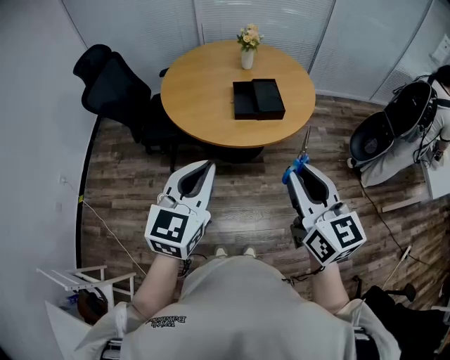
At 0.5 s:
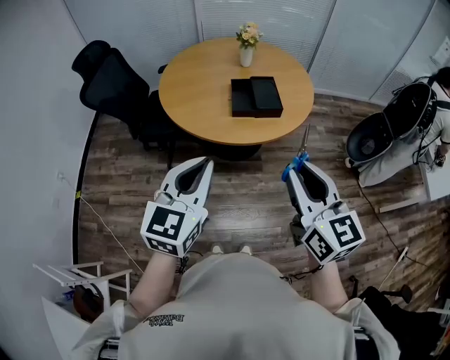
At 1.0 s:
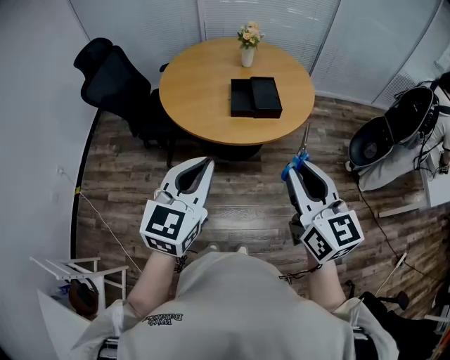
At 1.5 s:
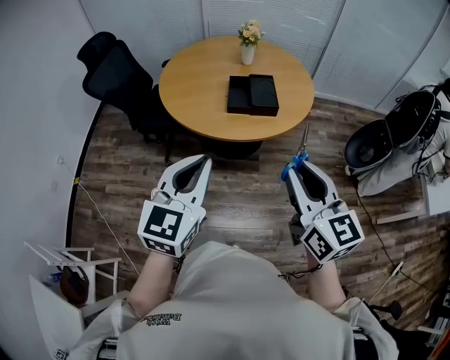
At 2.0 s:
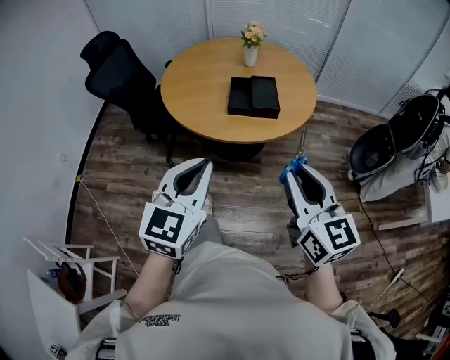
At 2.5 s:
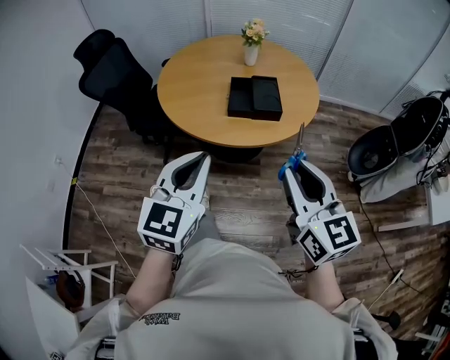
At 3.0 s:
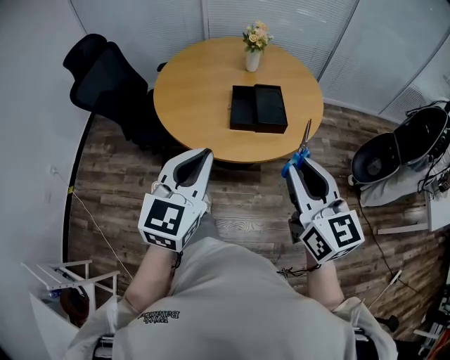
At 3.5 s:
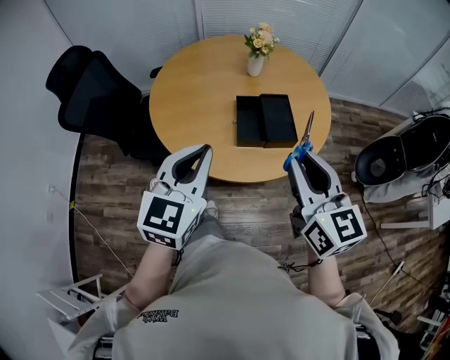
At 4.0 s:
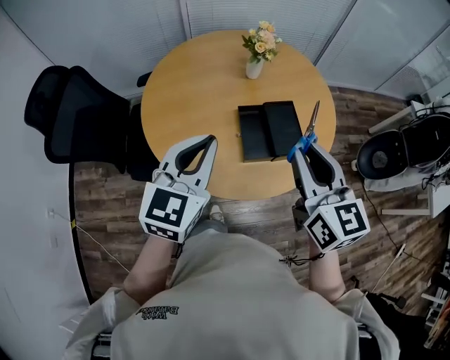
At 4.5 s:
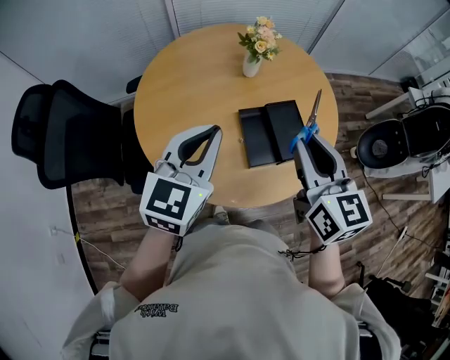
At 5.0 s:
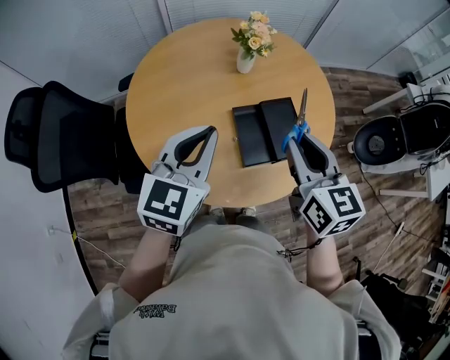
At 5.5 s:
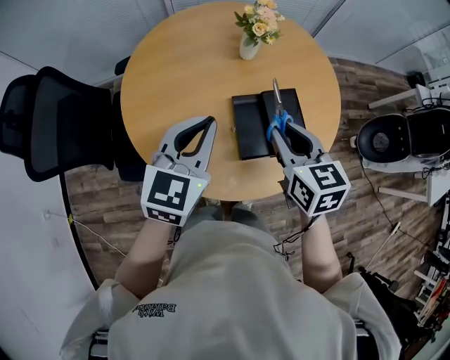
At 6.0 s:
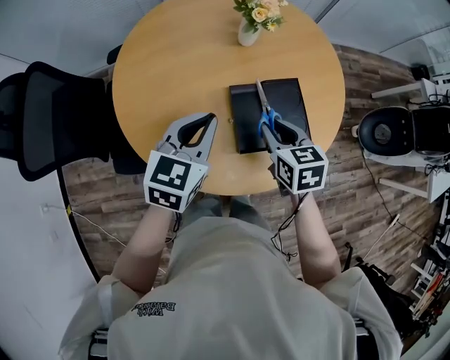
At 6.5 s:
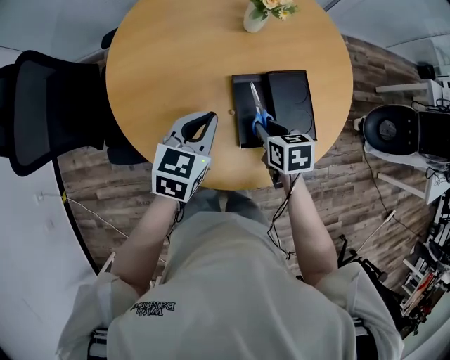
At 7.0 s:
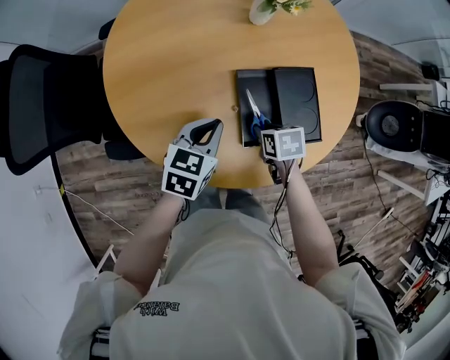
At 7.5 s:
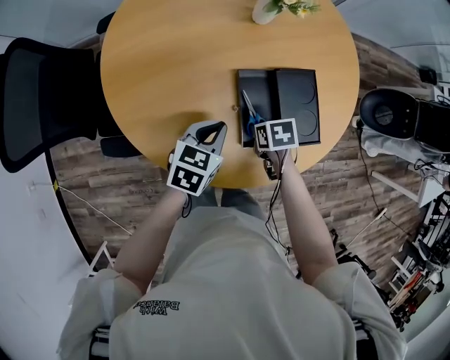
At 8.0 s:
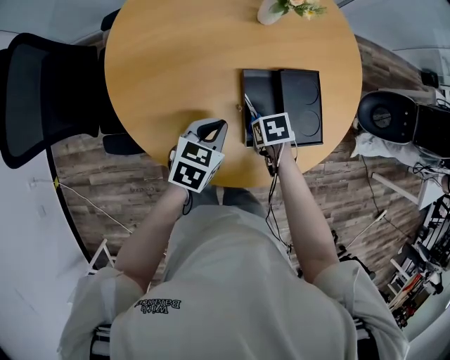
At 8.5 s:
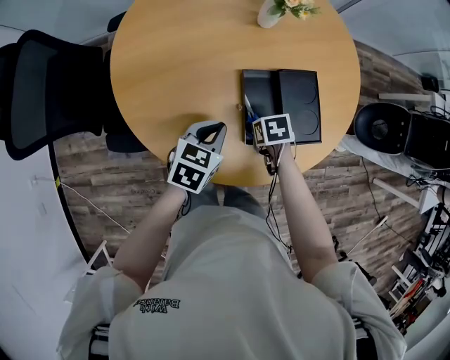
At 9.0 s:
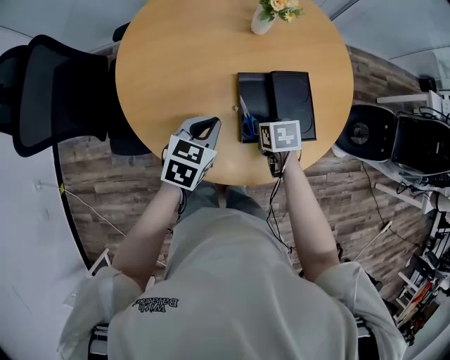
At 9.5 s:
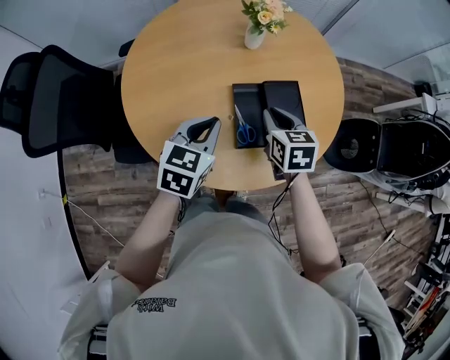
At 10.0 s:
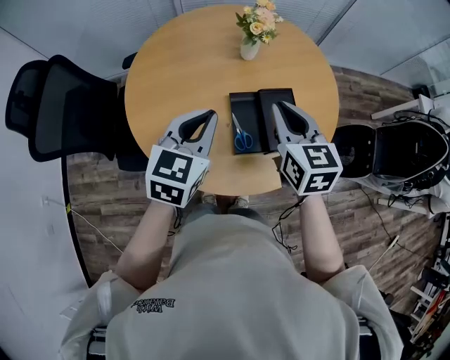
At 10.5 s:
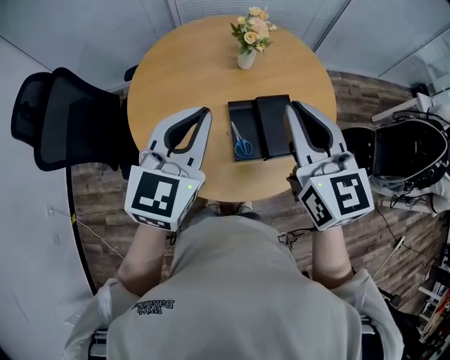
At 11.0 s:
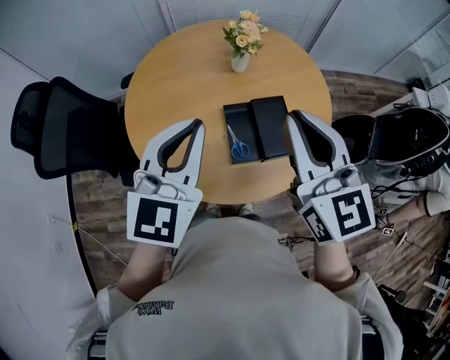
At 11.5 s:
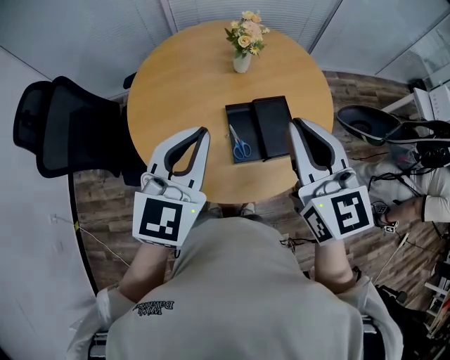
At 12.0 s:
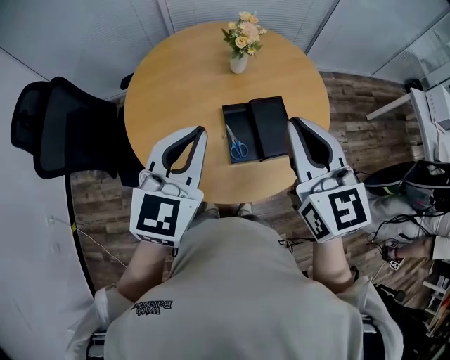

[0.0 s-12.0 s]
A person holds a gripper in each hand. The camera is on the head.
0.0 to 2.0 s: The two grippers go roughly 10 cm to the right.
2.0 to 4.0 s: Both grippers are carried forward, about 40 cm.
4.0 to 6.0 s: Both grippers move downward and forward, about 25 cm. The right gripper tips its fingers downward by roughly 30 degrees.
6.0 to 8.0 s: The grippers both shift downward by some 20 cm. The left gripper changes its angle by approximately 20 degrees. The right gripper tilts its fingers some 40 degrees downward.
8.0 to 10.0 s: The right gripper travels upward by about 35 cm, and angles its fingers upward, by some 60 degrees, while the left gripper shifts about 20 cm upward, and swivels some 30 degrees.
10.0 to 12.0 s: The right gripper travels upward and backward by about 15 cm. The left gripper travels upward by about 10 cm.

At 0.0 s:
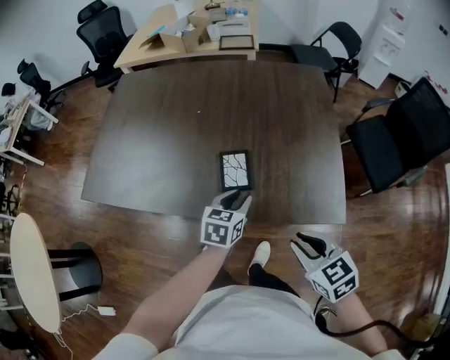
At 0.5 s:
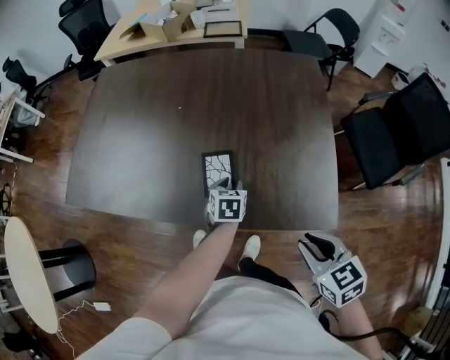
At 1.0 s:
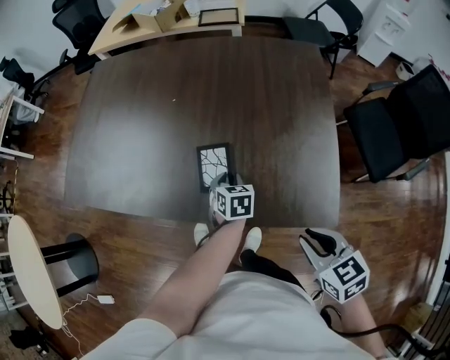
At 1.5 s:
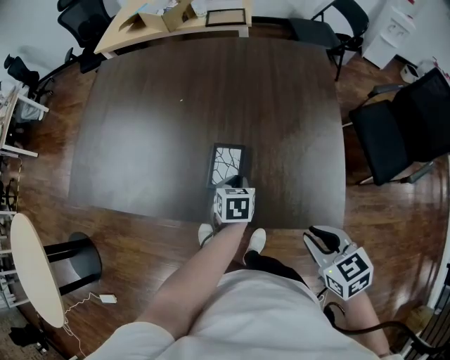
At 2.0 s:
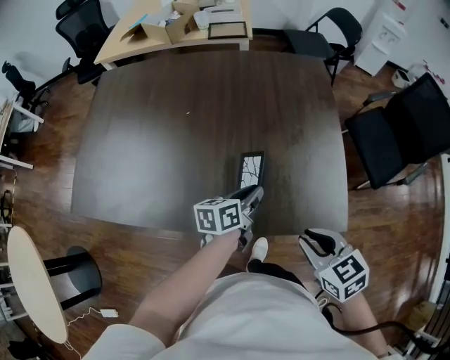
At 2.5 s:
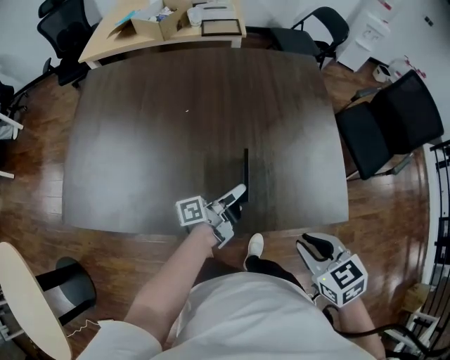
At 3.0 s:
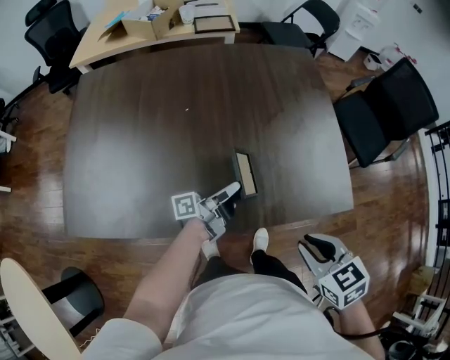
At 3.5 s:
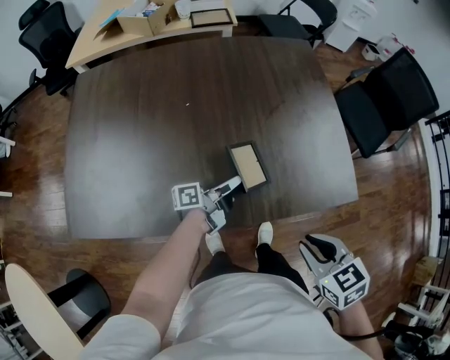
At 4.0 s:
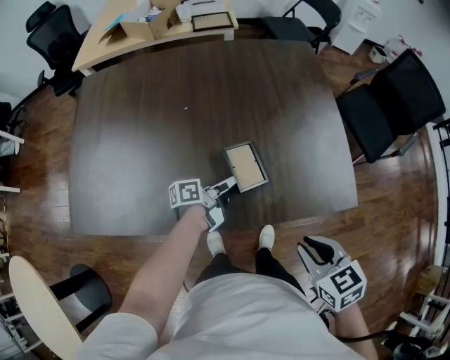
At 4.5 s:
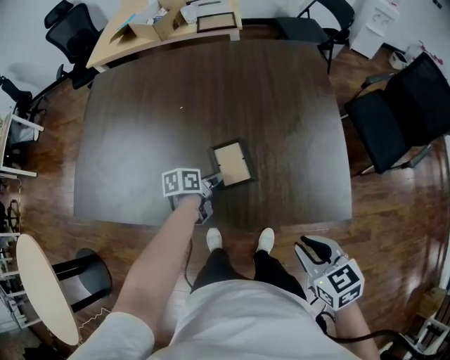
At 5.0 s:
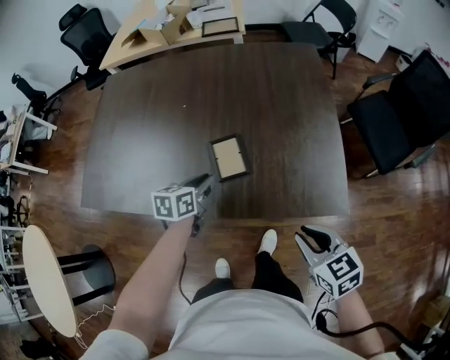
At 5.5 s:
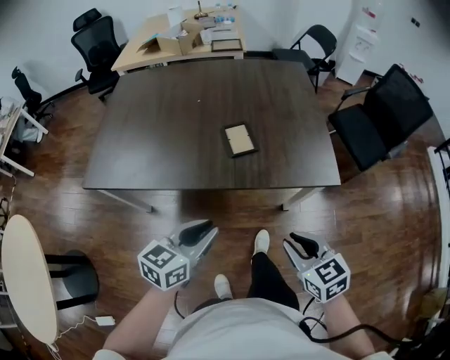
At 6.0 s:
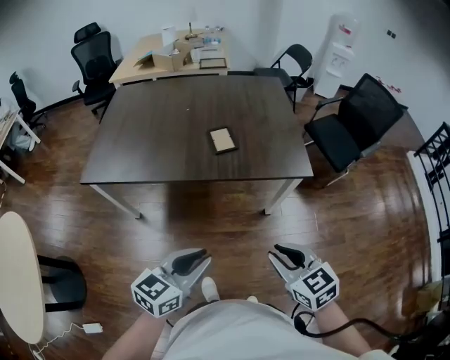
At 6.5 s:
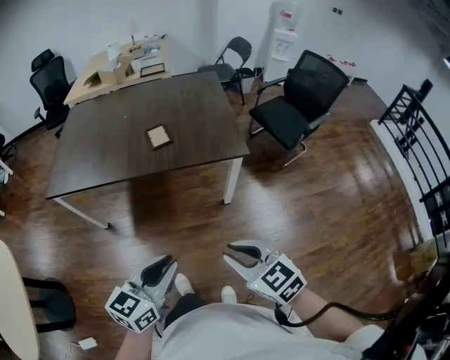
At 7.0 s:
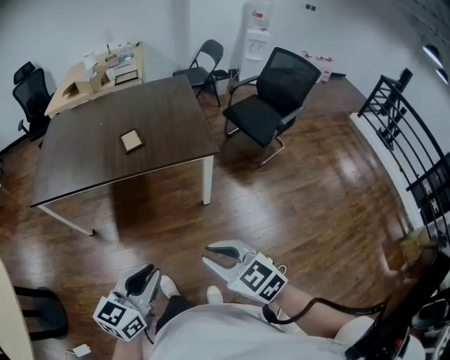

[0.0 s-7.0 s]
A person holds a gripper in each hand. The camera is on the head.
0.0 to 2.0 s: The right gripper moves some 5 cm, while the left gripper goes roughly 5 cm to the right, goes downward and returns, about 10 cm each way, and swivels approximately 30 degrees.
2.0 to 3.5 s: The left gripper is displaced to the left by about 10 cm, and changes its angle by some 40 degrees. Meanwhile the right gripper moves to the left and backward, some 10 cm.
3.5 to 5.0 s: The right gripper travels to the right by roughly 10 cm. The left gripper goes downward and returns, about 5 cm each way, and tips its fingers downward by about 40 degrees.
5.0 to 7.0 s: The grippers both shift backward by approximately 40 cm. The left gripper turns by approximately 30 degrees.

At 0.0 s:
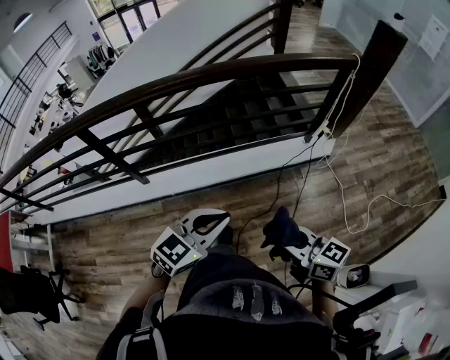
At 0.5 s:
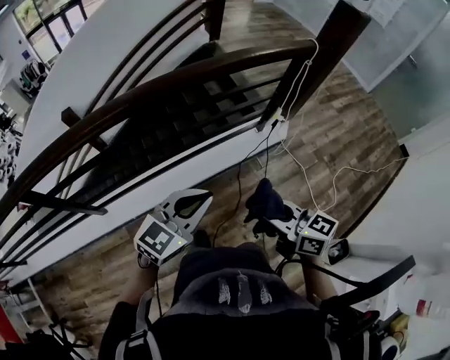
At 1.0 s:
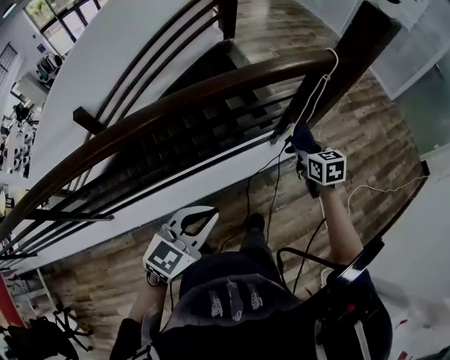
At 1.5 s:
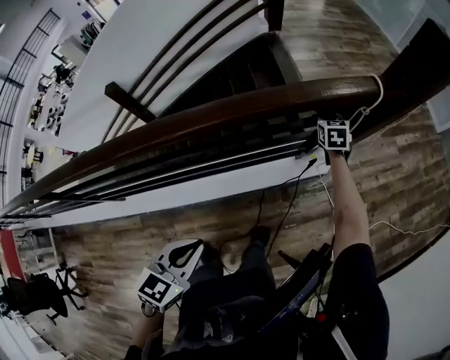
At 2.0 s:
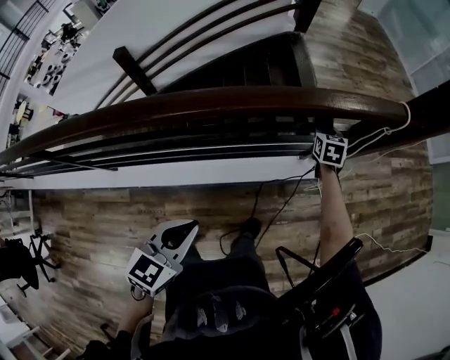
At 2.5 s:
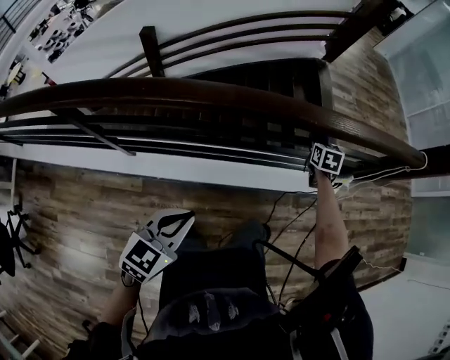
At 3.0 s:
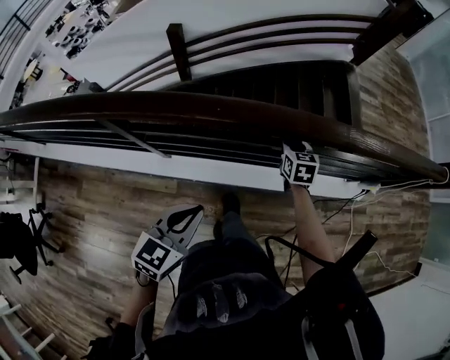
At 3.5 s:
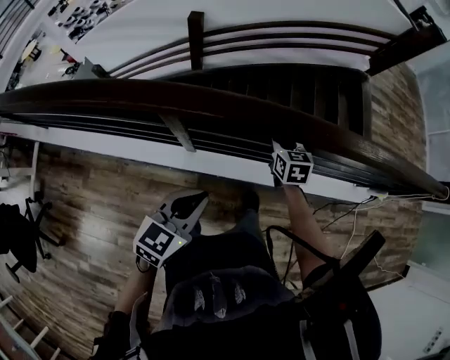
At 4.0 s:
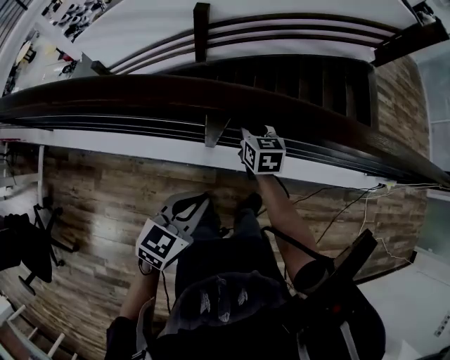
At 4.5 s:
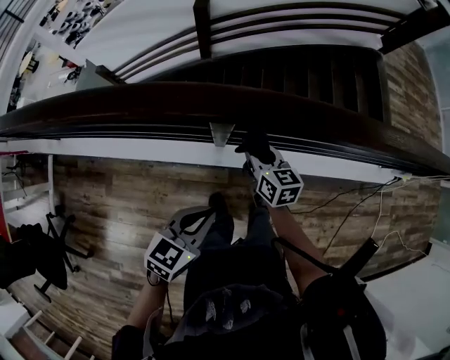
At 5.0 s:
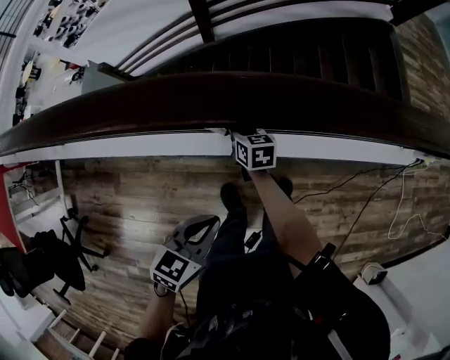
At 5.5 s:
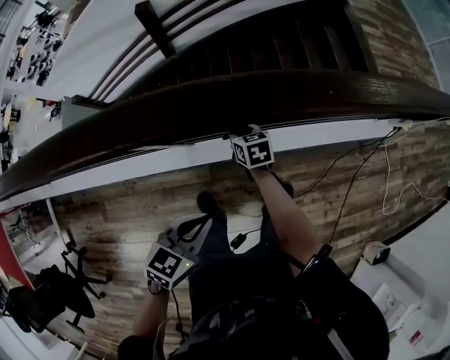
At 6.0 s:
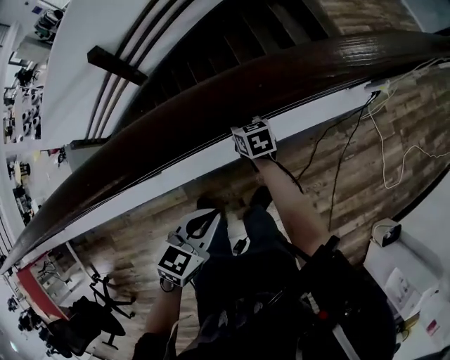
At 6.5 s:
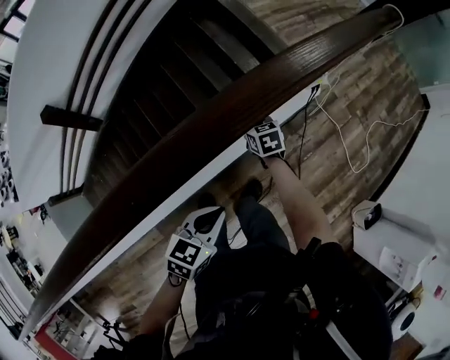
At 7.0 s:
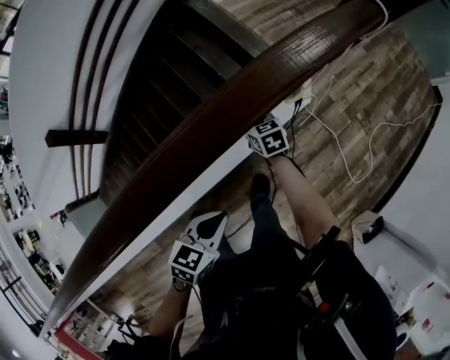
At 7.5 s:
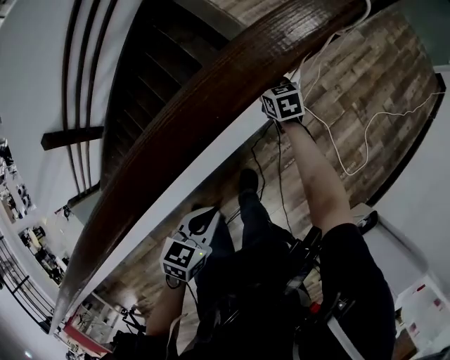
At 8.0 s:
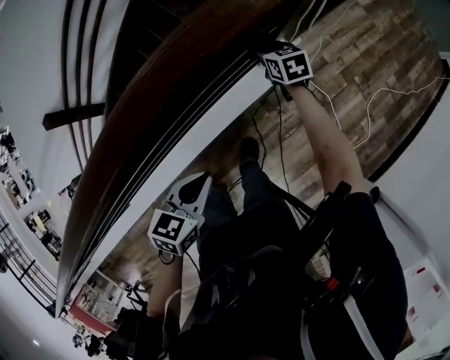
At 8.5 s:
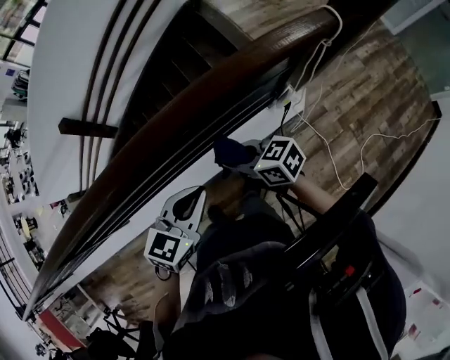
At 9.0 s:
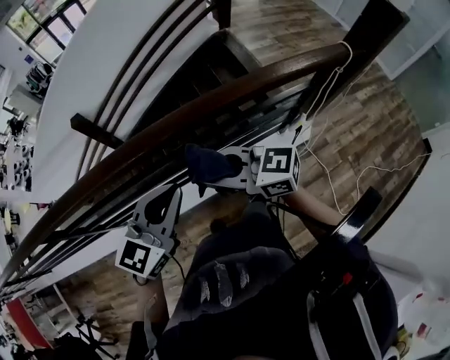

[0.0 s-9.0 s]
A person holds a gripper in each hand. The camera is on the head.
0.0 to 2.0 s: The left gripper moves forward, approximately 35 cm, and turns by roughly 30 degrees. Meanwhile the right gripper moves forward, some 80 cm, and points its fingers about 30 degrees further downward.
2.0 to 4.5 s: The two grippers travel together, to the left, roughly 1 m. The right gripper turns by approximately 40 degrees.
4.5 to 7.0 s: The pair of grippers is taken roughly 90 cm. The right gripper turns by about 30 degrees; the left gripper turns by roughly 40 degrees.
7.0 to 9.0 s: Both grippers move upward, some 35 cm. The right gripper tilts its fingers about 40 degrees upward. Meanwhile the left gripper rotates about 40 degrees.
